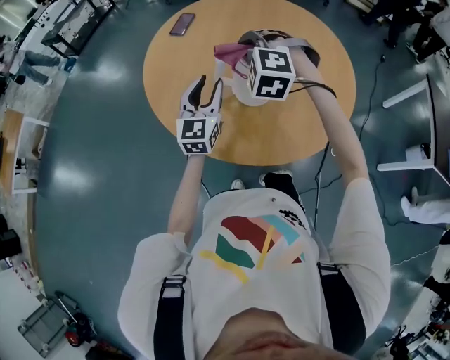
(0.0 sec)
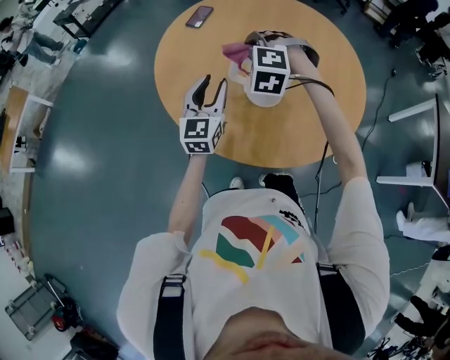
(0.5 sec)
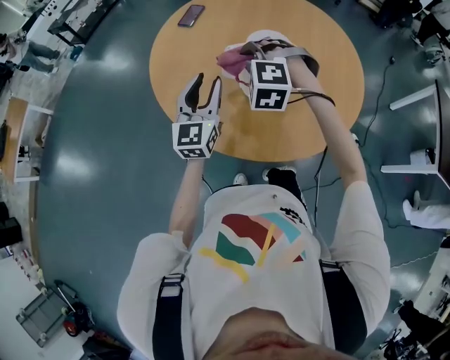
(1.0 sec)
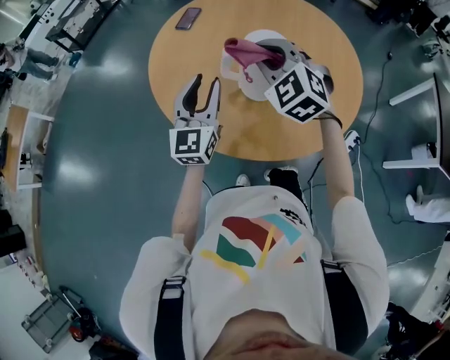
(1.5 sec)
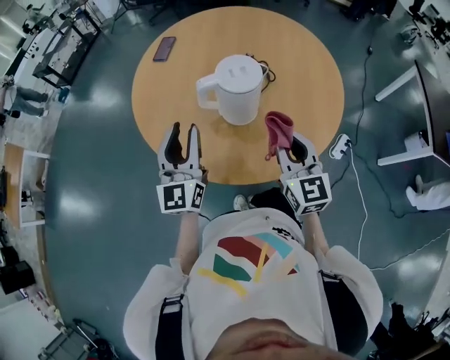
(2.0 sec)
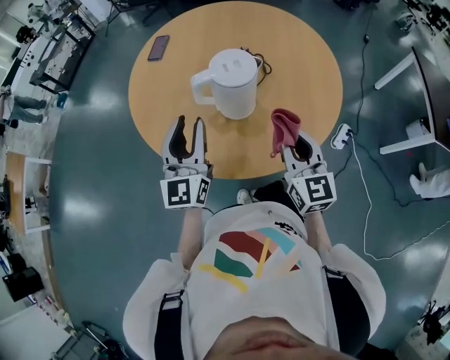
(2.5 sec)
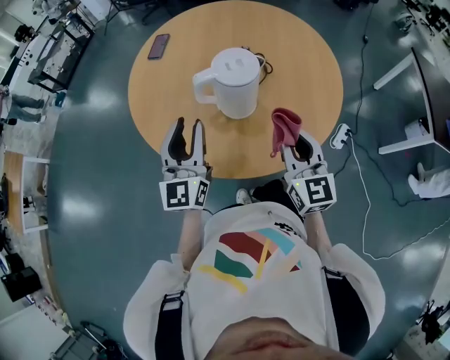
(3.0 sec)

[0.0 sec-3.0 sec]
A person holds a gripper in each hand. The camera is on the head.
0.0 sec to 1.5 sec: The right gripper moves about 5 cm, and turns by about 30 degrees, while the left gripper ends up approximately 5 cm from where it was.
1.5 sec to 3.0 sec: The right gripper goes some 20 cm to the right, backward and downward, and rolls clockwise, seen from behind, by roughly 50 degrees.

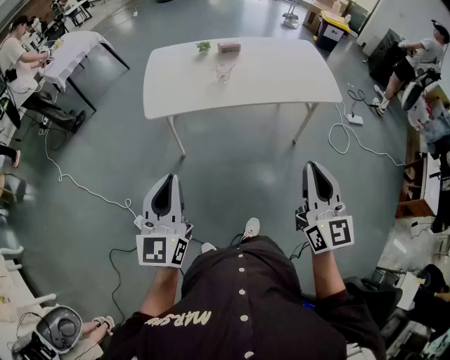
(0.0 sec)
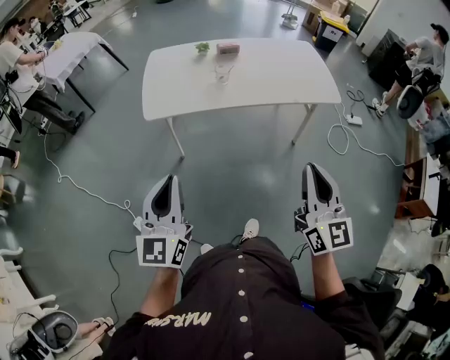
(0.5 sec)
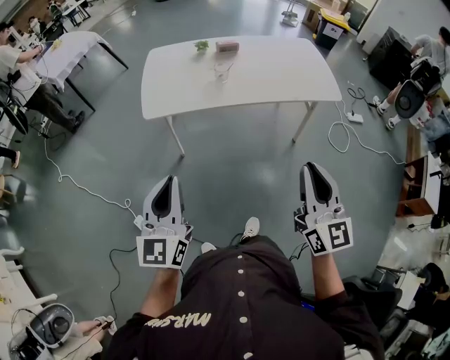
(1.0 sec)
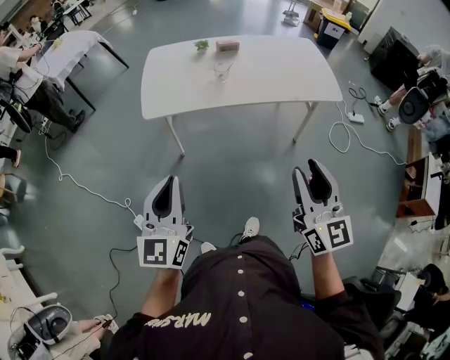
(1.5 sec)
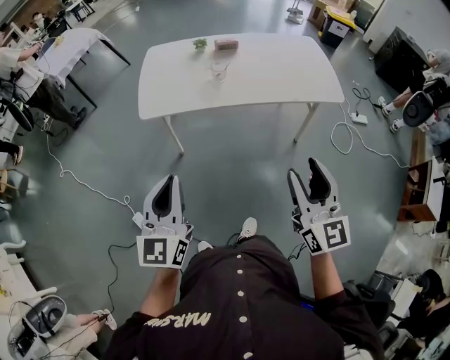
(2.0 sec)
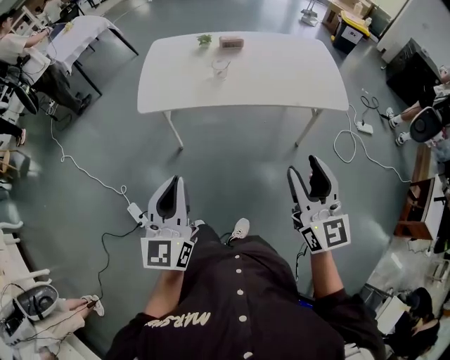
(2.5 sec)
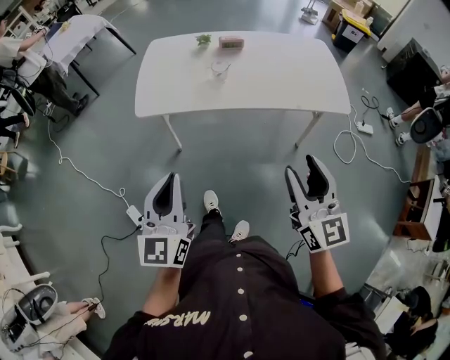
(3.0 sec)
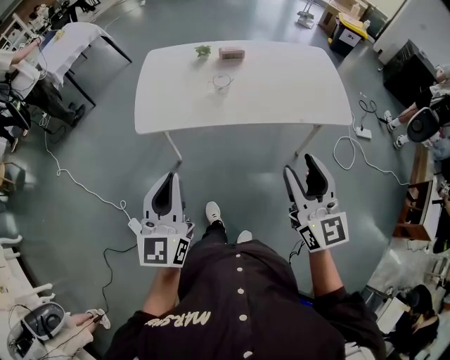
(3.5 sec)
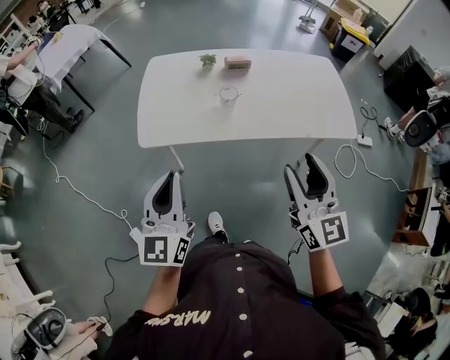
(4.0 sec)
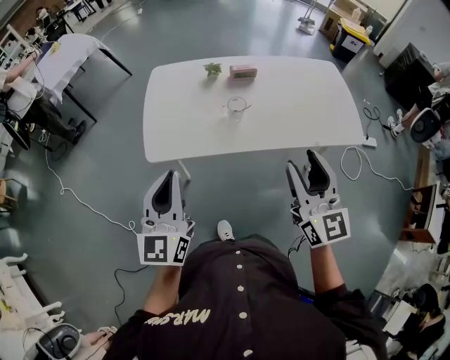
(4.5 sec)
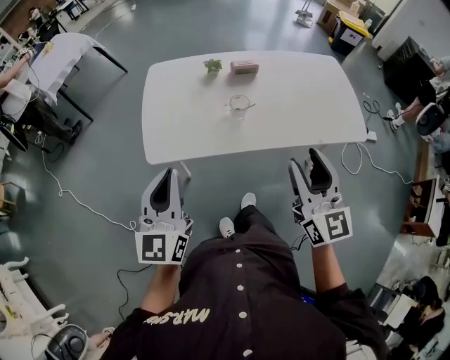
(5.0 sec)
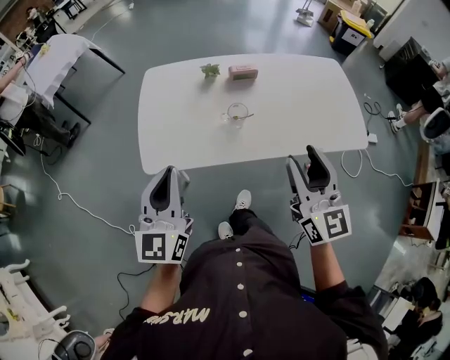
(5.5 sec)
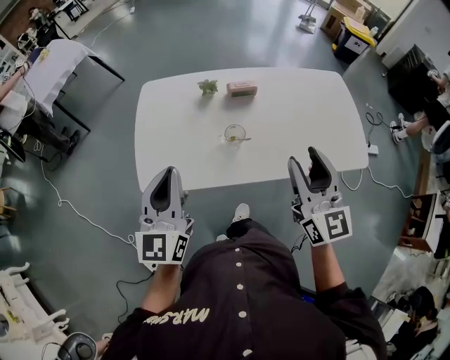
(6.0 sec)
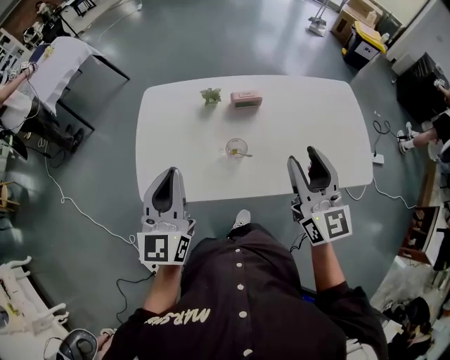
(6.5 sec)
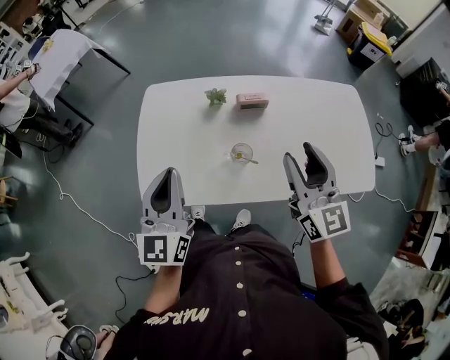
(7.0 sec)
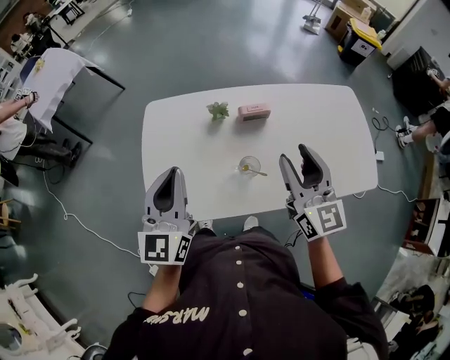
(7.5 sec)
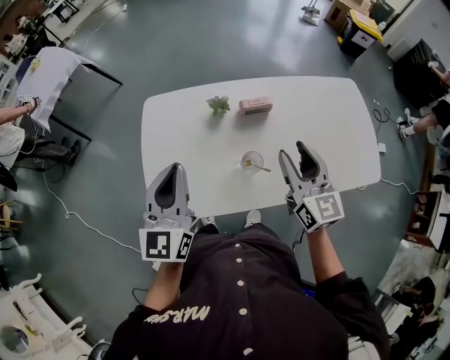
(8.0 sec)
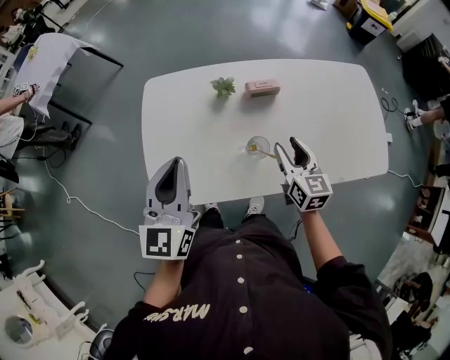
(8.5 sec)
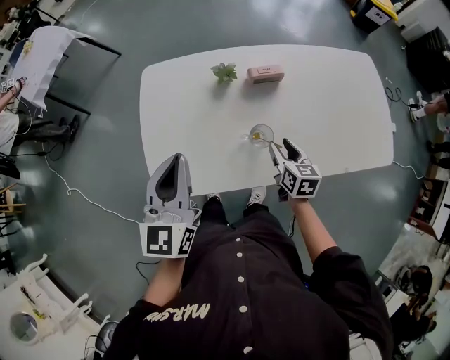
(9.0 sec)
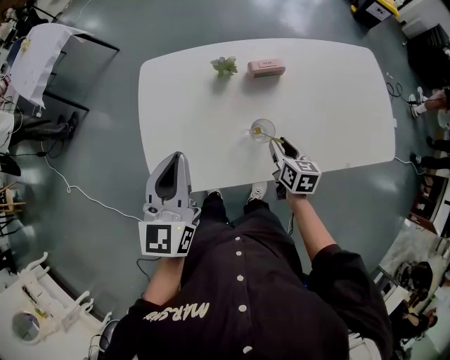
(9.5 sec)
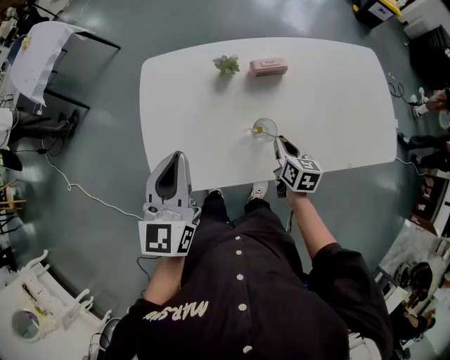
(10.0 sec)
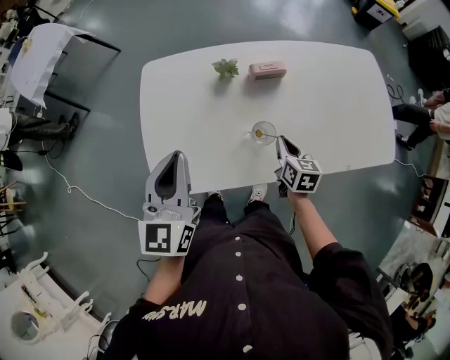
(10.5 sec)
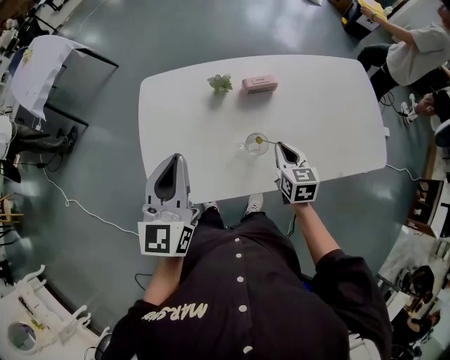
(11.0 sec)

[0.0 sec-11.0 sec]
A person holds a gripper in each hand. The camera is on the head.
0.0 sec to 2.0 sec: The left gripper travels to the right by some 5 cm, while the right gripper opens up.
2.0 sec to 3.5 sec: Both grippers travel together forward, roughly 15 cm.
3.5 sec to 5.5 sec: Both grippers travel together forward, some 20 cm.
5.5 sec to 7.5 sec: Both grippers travel together forward, about 20 cm.
7.5 sec to 9.0 sec: The right gripper travels downward by about 30 cm, and tilts its fingers roughly 40 degrees downward.
9.0 sec to 11.0 sec: The right gripper closes up.

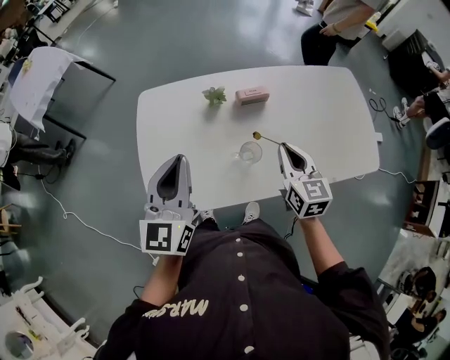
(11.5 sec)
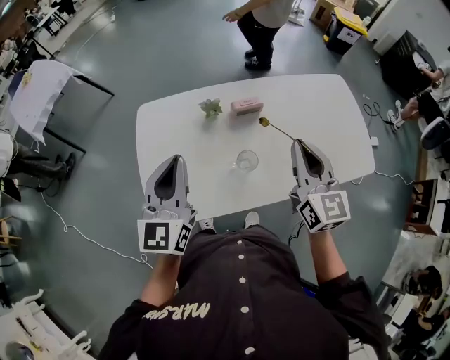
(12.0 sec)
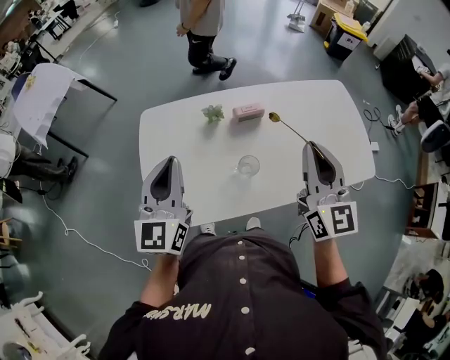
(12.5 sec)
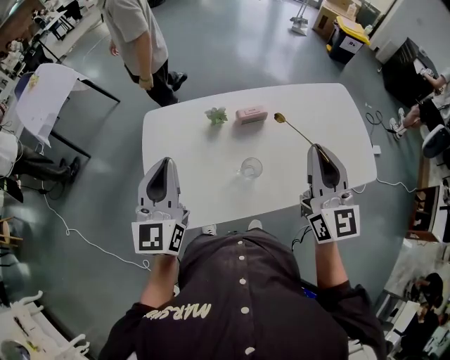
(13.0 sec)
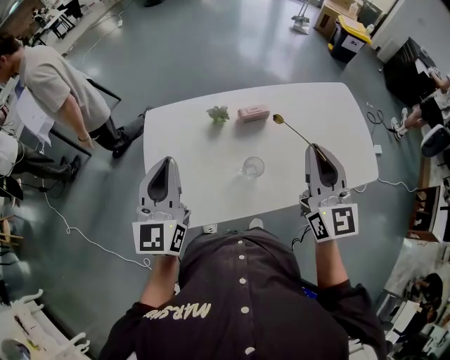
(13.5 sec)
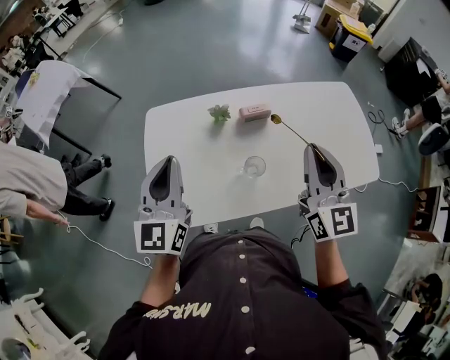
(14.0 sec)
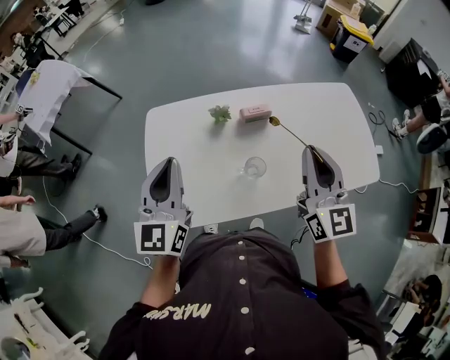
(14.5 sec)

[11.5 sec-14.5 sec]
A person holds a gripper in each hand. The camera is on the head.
11.5 sec to 13.0 sec: The right gripper is displaced upward by approximately 20 cm, and turns by approximately 30 degrees.
13.0 sec to 14.5 sec: The grippers move only a little.

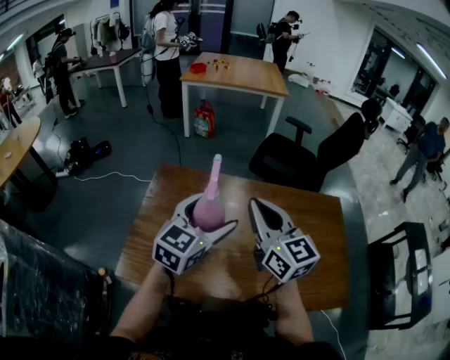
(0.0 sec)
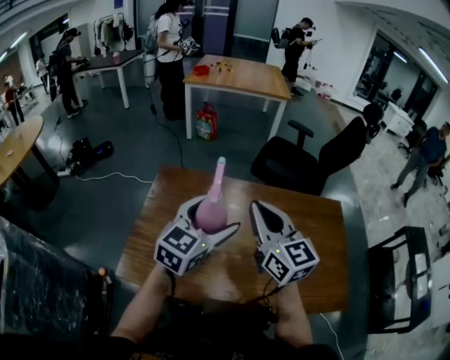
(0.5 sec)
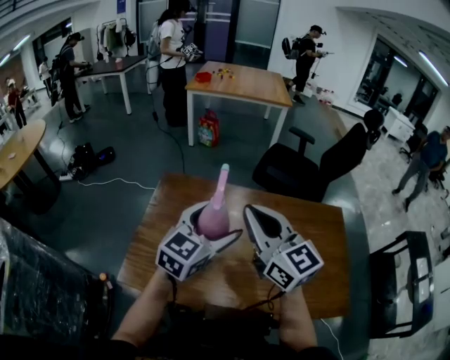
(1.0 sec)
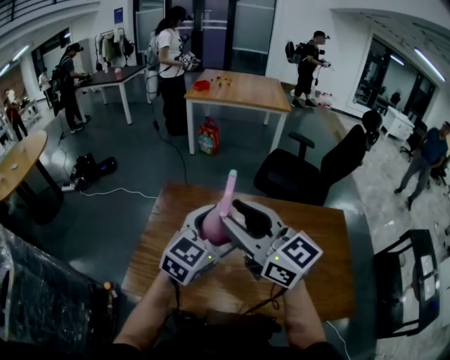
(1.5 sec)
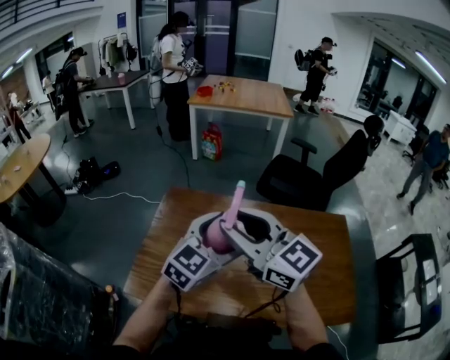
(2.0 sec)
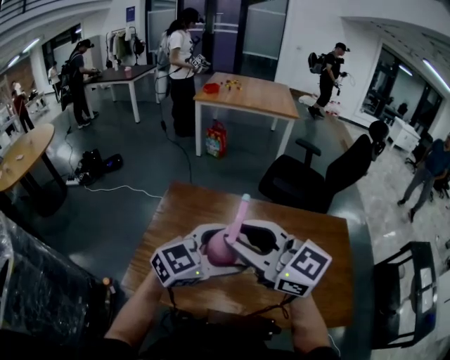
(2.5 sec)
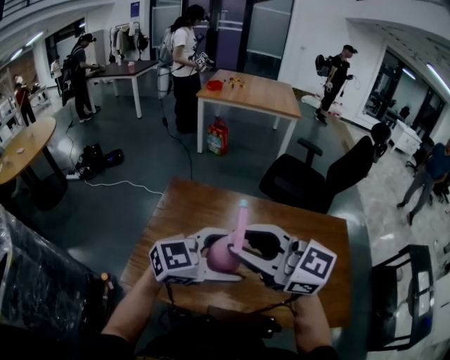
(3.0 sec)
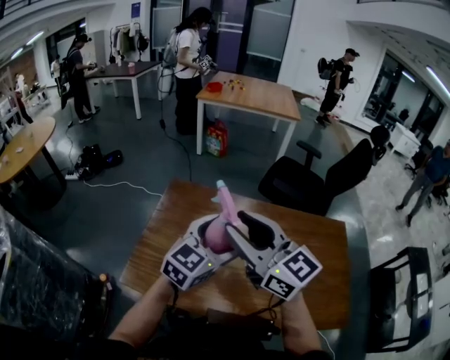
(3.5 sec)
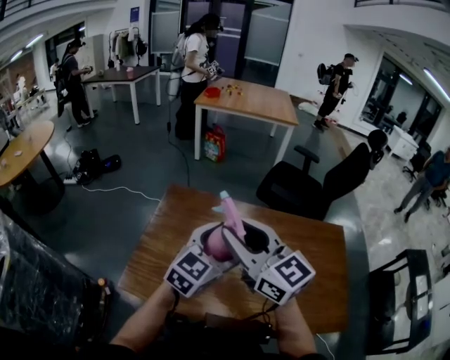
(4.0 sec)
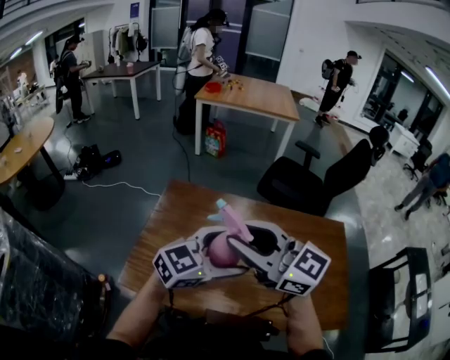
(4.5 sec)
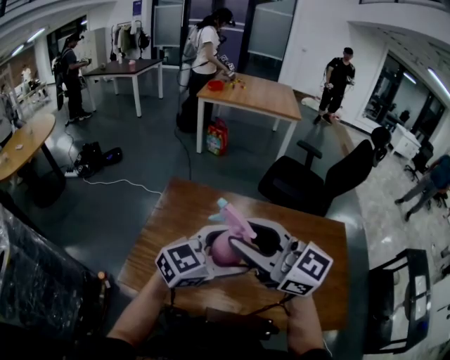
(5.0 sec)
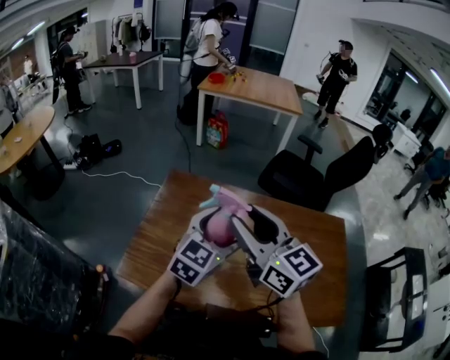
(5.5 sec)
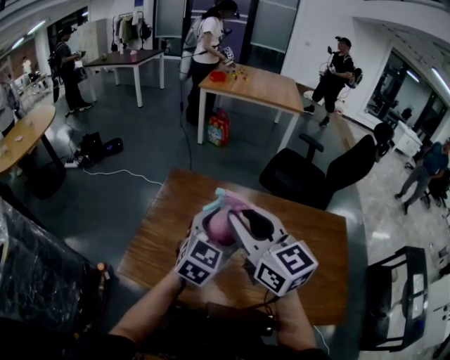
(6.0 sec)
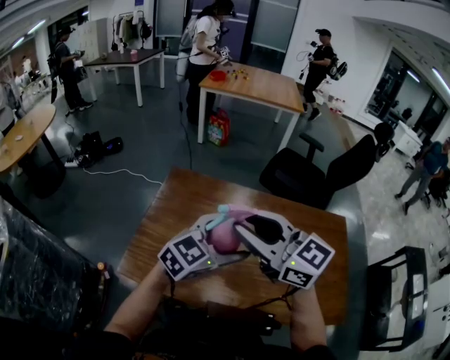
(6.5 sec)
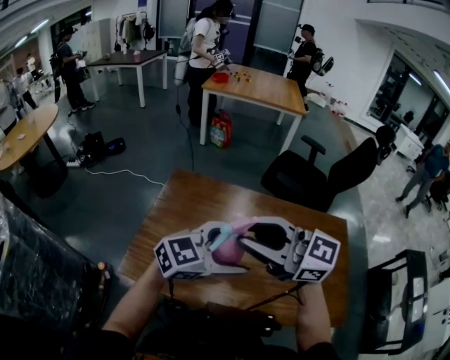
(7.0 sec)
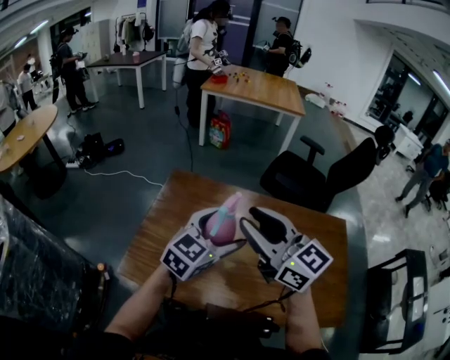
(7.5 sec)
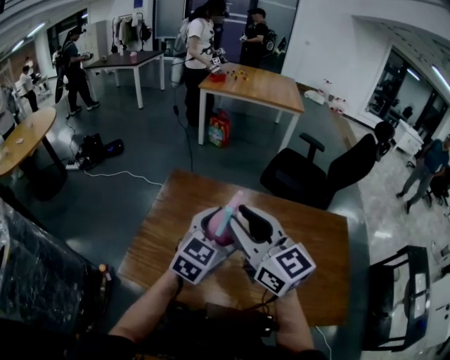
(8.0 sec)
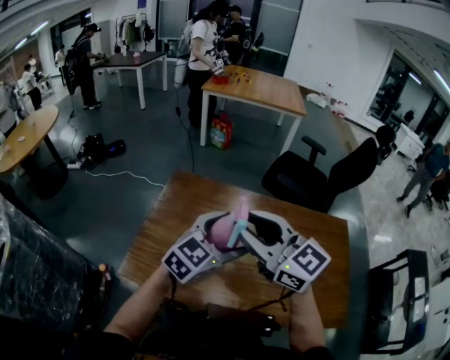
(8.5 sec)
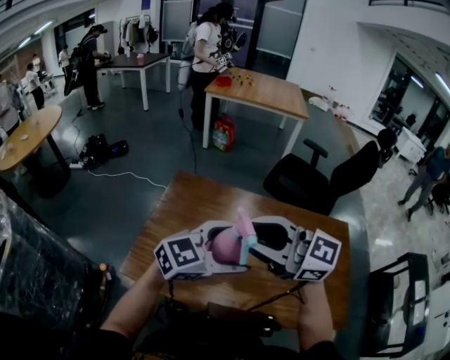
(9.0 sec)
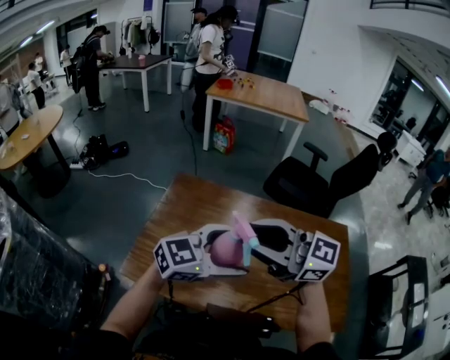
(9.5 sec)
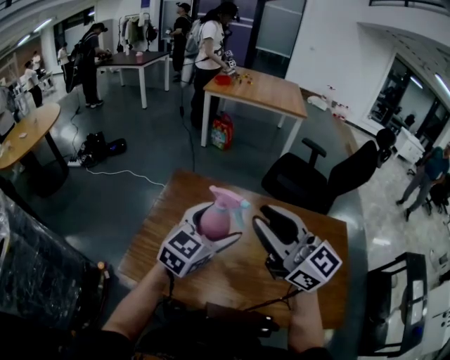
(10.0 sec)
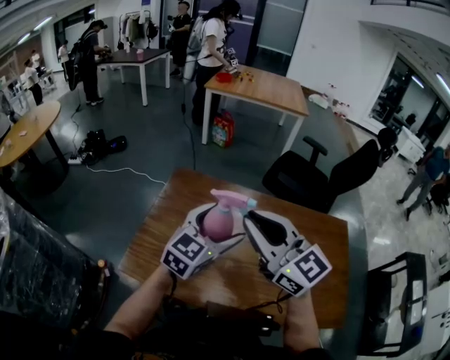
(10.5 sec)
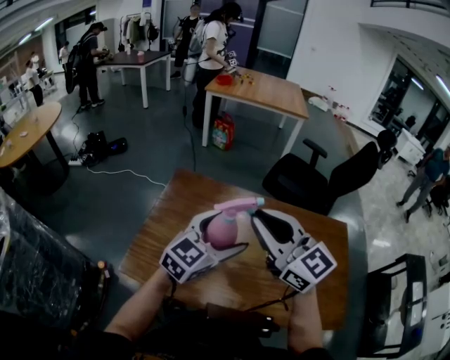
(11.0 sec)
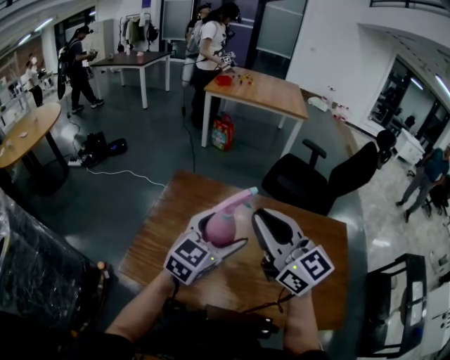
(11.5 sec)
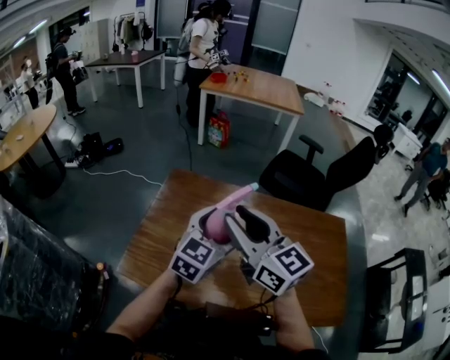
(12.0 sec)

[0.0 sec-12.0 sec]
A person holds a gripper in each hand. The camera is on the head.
0.0 sec to 2.0 sec: The right gripper moves to the left and upward, some 10 cm, changes its angle by about 30 degrees, and opens.
8.0 sec to 10.0 sec: The right gripper shifts by roughly 5 cm.
10.0 sec to 12.0 sec: The right gripper changes place by roughly 5 cm.
